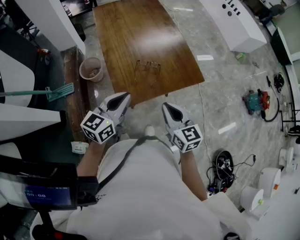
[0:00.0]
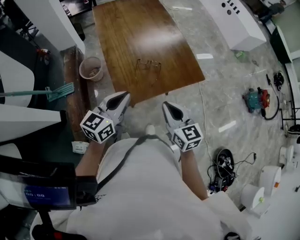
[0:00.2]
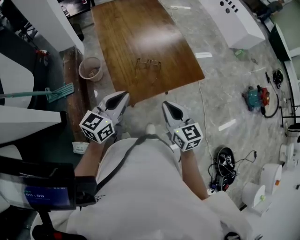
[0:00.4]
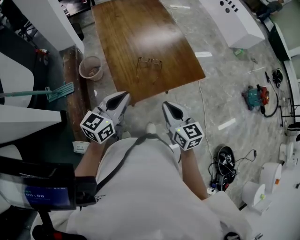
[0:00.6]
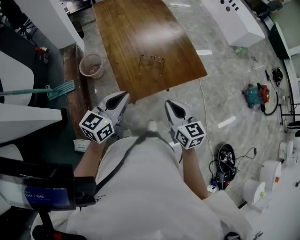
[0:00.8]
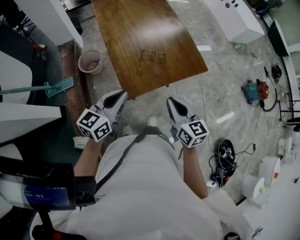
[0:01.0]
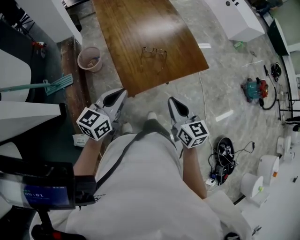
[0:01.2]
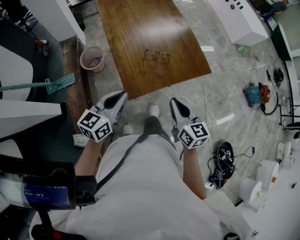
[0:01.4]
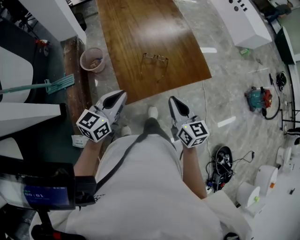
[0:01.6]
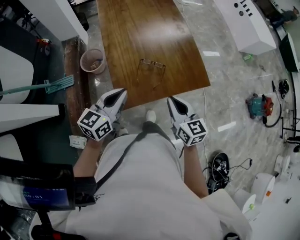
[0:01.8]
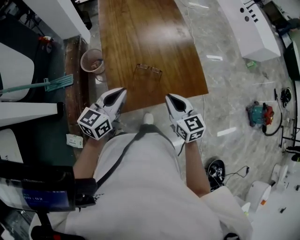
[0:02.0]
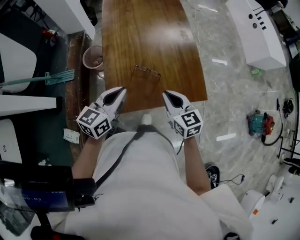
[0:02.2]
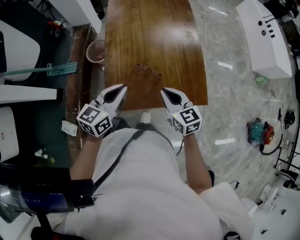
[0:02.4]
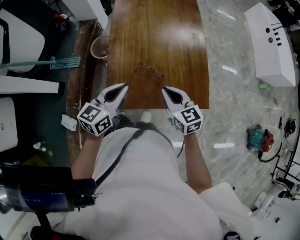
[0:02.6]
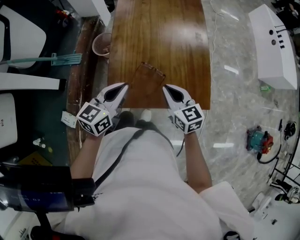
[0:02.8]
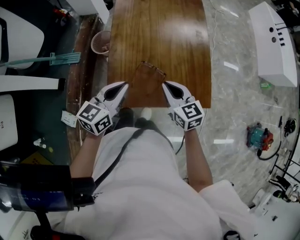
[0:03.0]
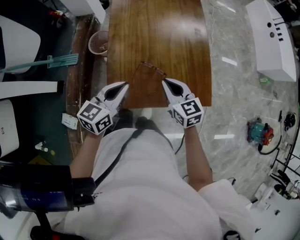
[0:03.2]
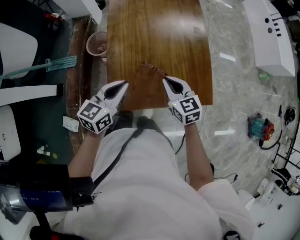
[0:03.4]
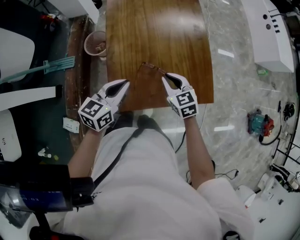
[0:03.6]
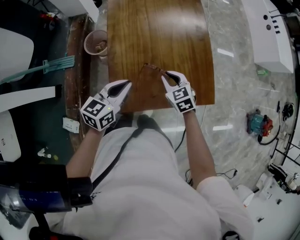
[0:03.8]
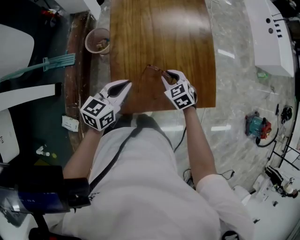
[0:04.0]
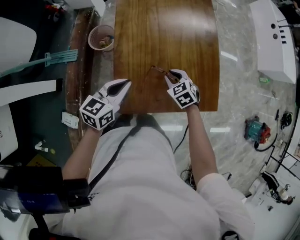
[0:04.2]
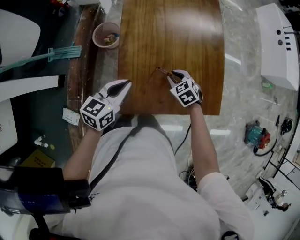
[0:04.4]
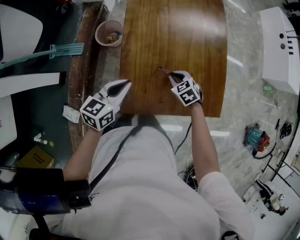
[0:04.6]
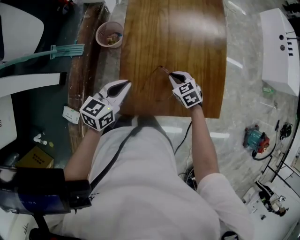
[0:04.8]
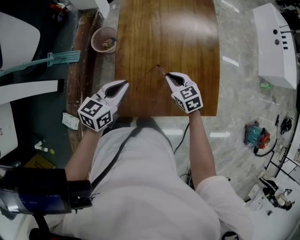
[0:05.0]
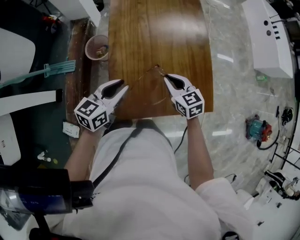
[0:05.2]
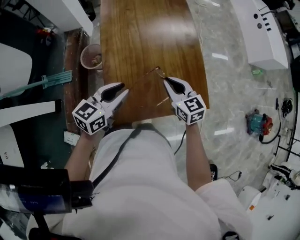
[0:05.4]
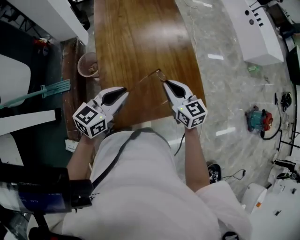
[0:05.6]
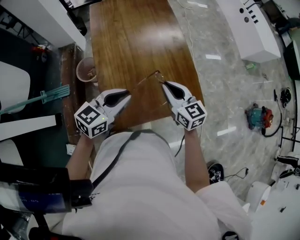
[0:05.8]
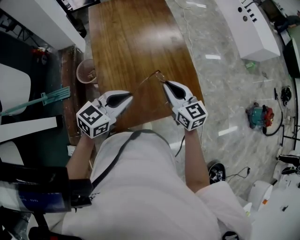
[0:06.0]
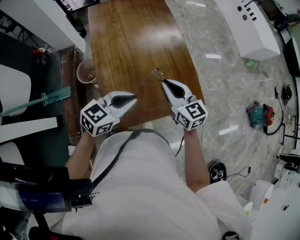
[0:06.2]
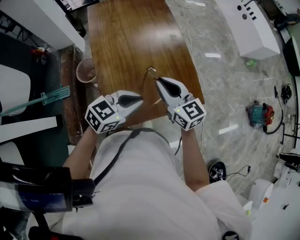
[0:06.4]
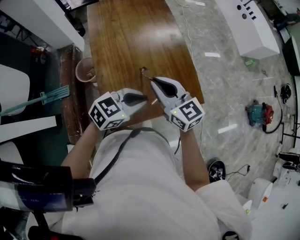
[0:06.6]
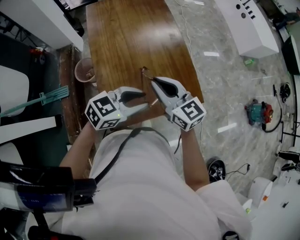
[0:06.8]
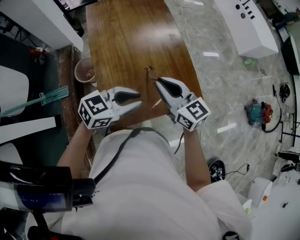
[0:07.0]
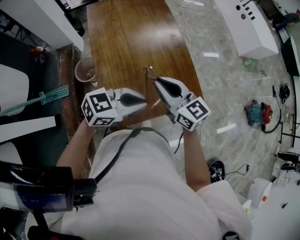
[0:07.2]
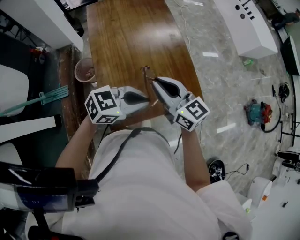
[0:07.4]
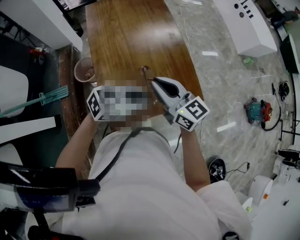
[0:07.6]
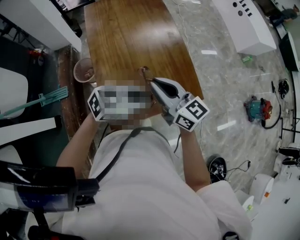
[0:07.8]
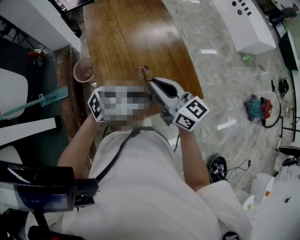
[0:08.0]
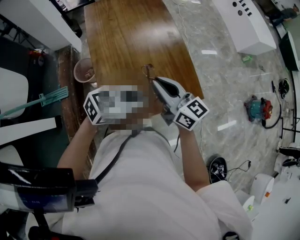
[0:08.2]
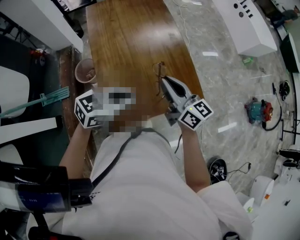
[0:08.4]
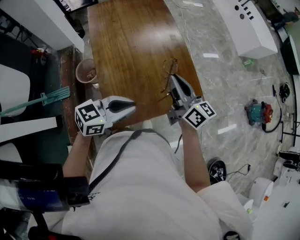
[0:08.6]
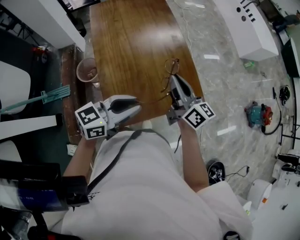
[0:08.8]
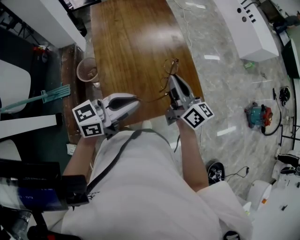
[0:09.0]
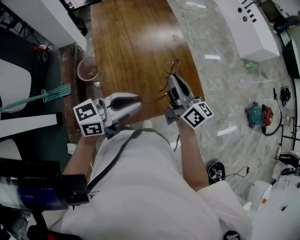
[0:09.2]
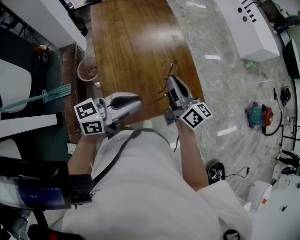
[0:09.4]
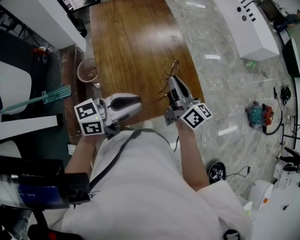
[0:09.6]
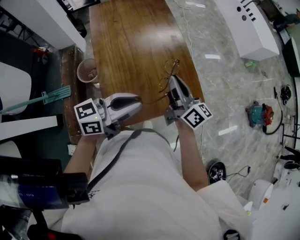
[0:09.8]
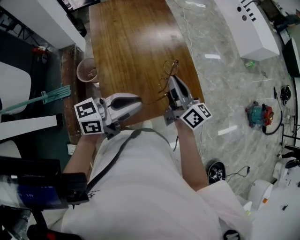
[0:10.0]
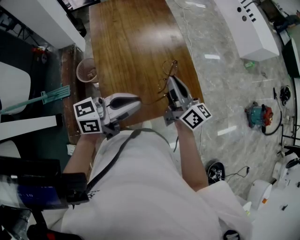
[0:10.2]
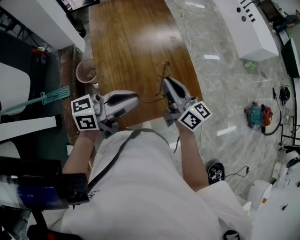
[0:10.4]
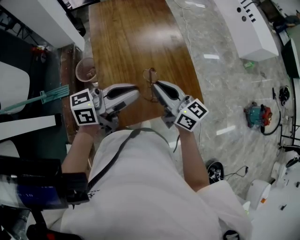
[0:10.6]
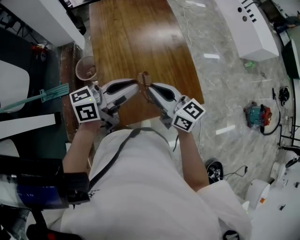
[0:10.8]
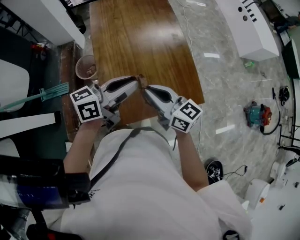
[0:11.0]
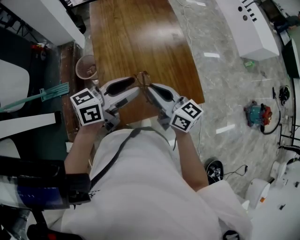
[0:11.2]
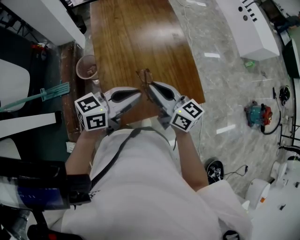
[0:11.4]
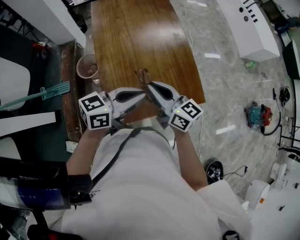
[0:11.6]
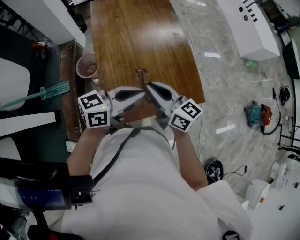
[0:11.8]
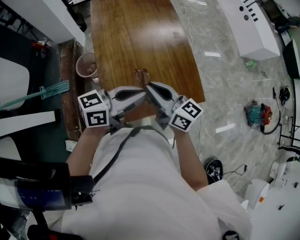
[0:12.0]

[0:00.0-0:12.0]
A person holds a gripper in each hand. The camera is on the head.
0:00.0 to 0:01.6: The left gripper travels to the left by roughly 5 cm.
0:01.6 to 0:03.0: The right gripper shifts some 20 cm forward, and rotates roughly 30 degrees, while the left gripper moves forward and to the right, about 15 cm.
0:03.0 to 0:04.4: The left gripper travels to the left, forward and downward by some 10 cm, while the right gripper travels downward and forward by approximately 20 cm, and points its fingers roughly 30 degrees further downward.
0:04.4 to 0:06.0: The right gripper is displaced upward by approximately 20 cm, and points its fingers roughly 40 degrees further upward. The left gripper goes approximately 15 cm to the right and upward, rotates about 30 degrees, and opens and closes again.
0:06.0 to 0:07.6: The right gripper shifts approximately 5 cm upward, while the left gripper shifts by some 5 cm, rotates some 30 degrees, and opens and closes again.
0:07.6 to 0:09.0: The right gripper ends up approximately 5 cm from where it was, and rotates about 30 degrees. The left gripper moves roughly 5 cm, and rotates roughly 30 degrees.
0:09.0 to 0:10.4: The grippers make only small movements.
0:10.4 to 0:12.0: The right gripper travels to the left by some 5 cm. The left gripper opens, then closes again.

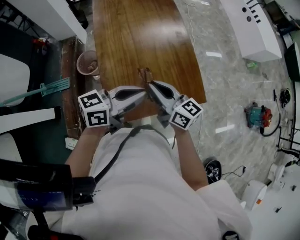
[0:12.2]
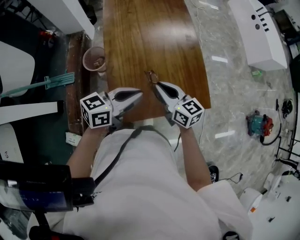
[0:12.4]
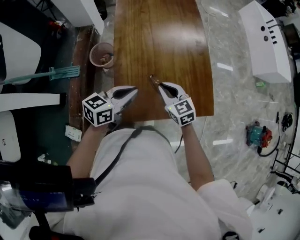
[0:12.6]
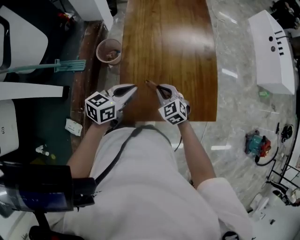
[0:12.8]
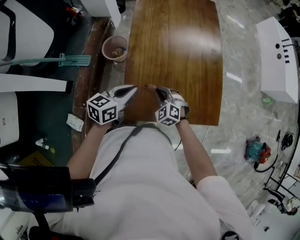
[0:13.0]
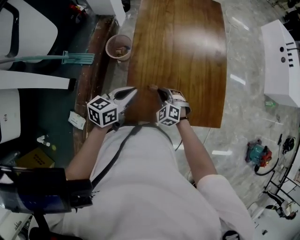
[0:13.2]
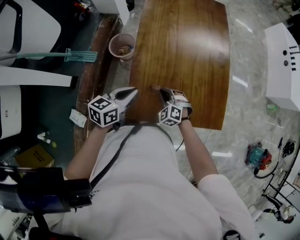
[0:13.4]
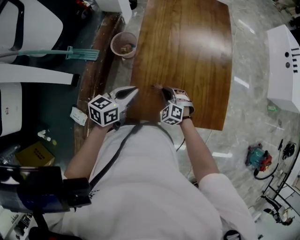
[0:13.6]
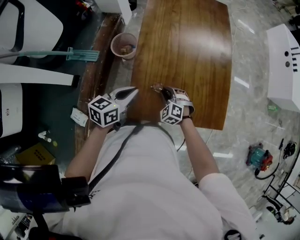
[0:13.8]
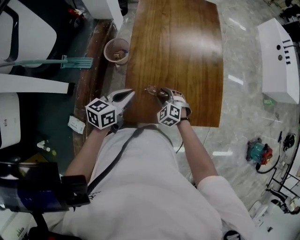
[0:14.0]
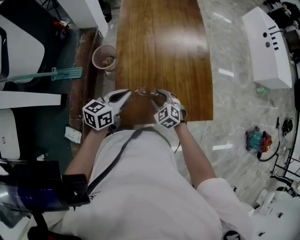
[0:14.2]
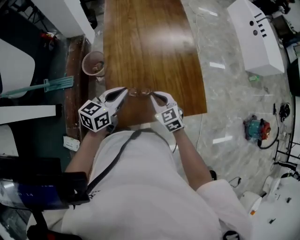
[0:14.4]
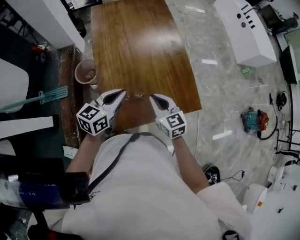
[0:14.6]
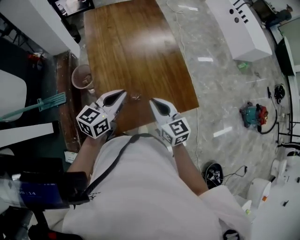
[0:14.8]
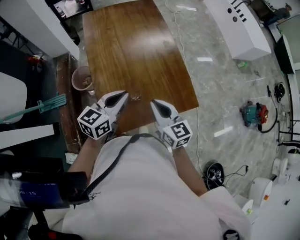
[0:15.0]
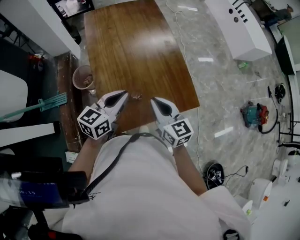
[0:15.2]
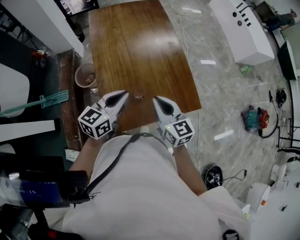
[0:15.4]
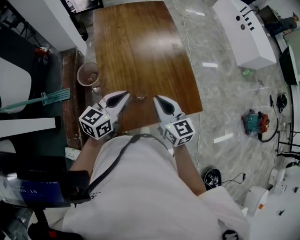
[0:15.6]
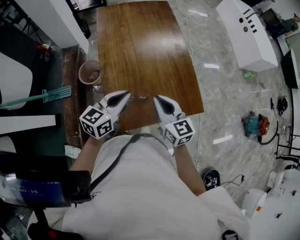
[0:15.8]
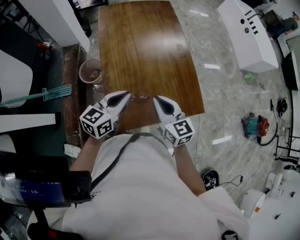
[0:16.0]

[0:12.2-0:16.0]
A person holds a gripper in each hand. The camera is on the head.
0:12.2 to 0:13.4: The left gripper goes approximately 20 cm to the left and downward, and rotates some 40 degrees. The right gripper moves downward, approximately 25 cm, and rotates around the line of its fingers by approximately 70 degrees, counterclockwise from behind.
0:13.4 to 0:14.8: The right gripper is displaced upward and to the right by roughly 25 cm, twists some 60 degrees clockwise, seen from behind, and opens, then closes again. The left gripper heads to the right and upward, covering some 15 cm, and rotates about 20 degrees.
0:14.8 to 0:16.0: There are only small adjustments of the grippers.

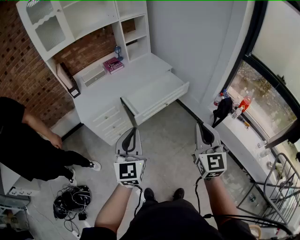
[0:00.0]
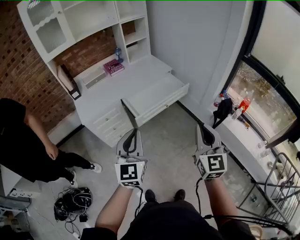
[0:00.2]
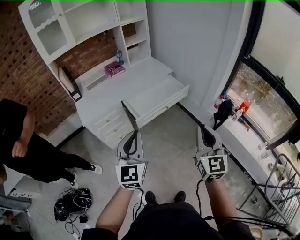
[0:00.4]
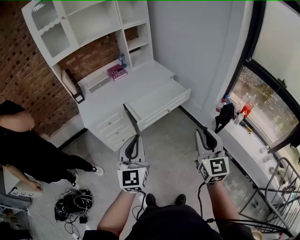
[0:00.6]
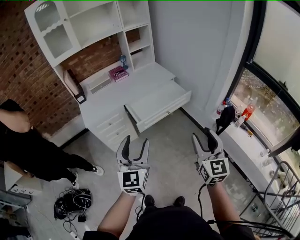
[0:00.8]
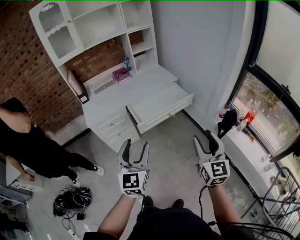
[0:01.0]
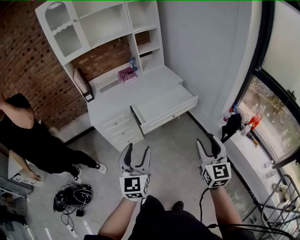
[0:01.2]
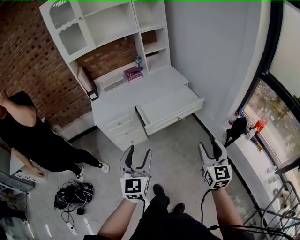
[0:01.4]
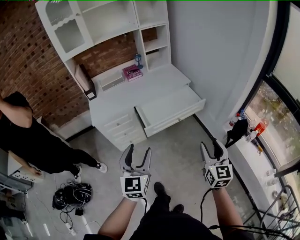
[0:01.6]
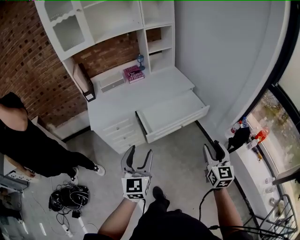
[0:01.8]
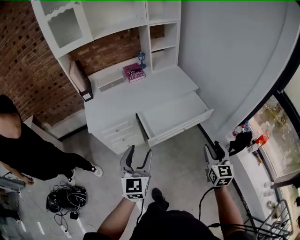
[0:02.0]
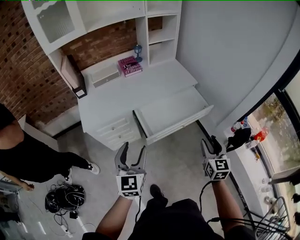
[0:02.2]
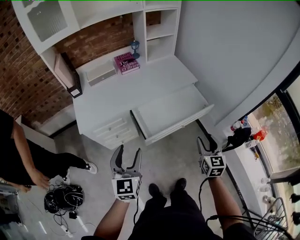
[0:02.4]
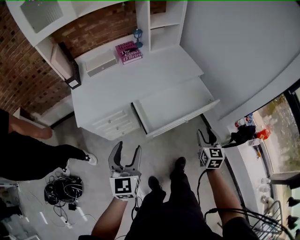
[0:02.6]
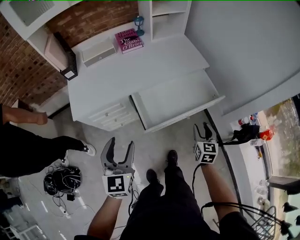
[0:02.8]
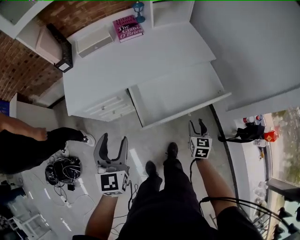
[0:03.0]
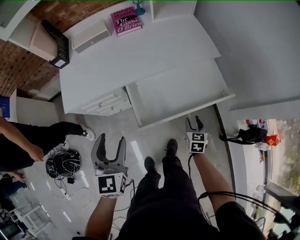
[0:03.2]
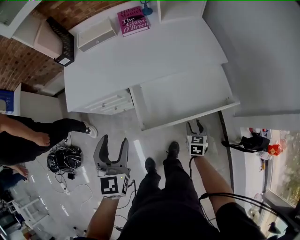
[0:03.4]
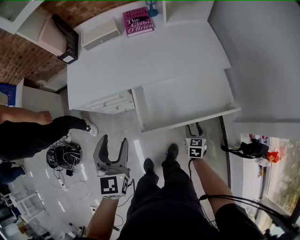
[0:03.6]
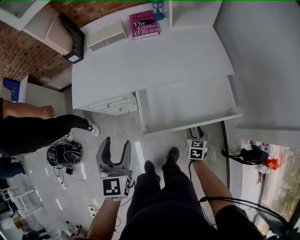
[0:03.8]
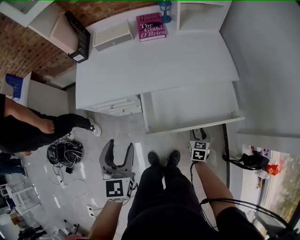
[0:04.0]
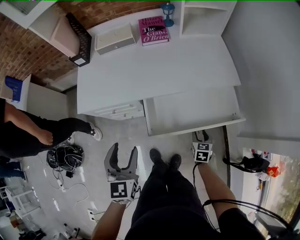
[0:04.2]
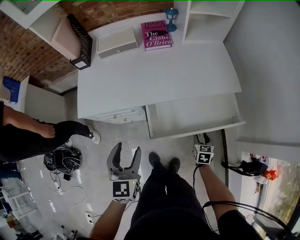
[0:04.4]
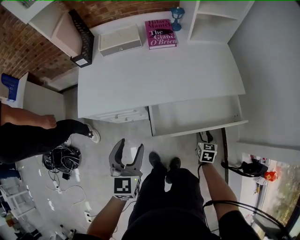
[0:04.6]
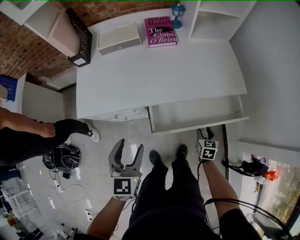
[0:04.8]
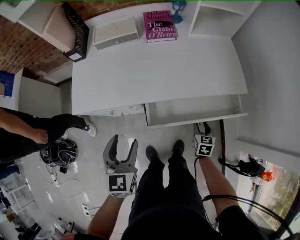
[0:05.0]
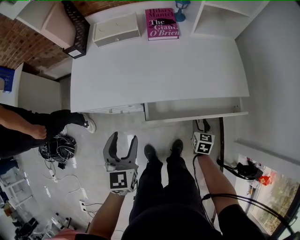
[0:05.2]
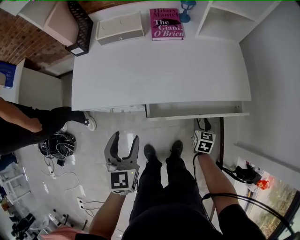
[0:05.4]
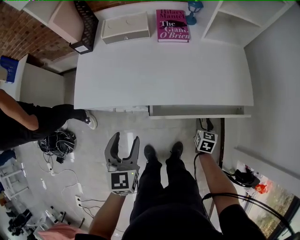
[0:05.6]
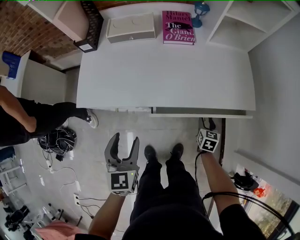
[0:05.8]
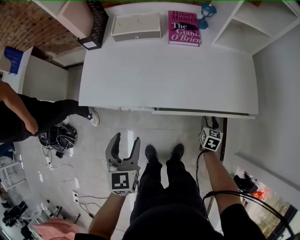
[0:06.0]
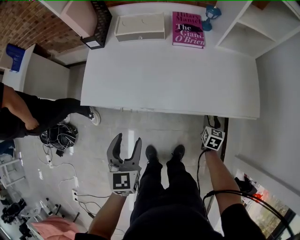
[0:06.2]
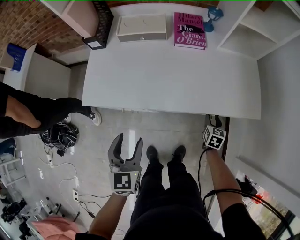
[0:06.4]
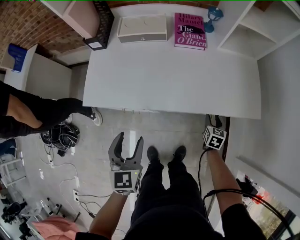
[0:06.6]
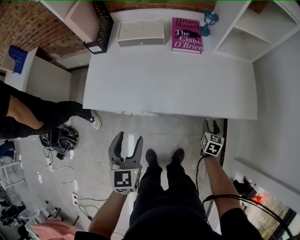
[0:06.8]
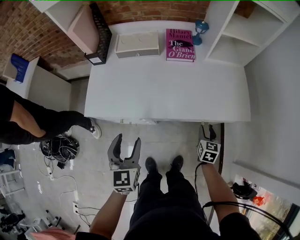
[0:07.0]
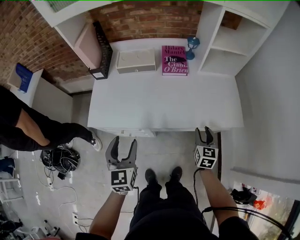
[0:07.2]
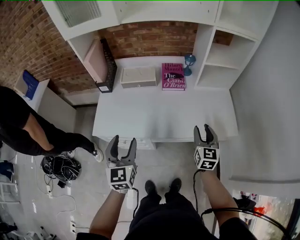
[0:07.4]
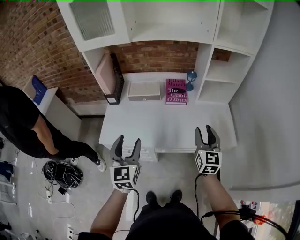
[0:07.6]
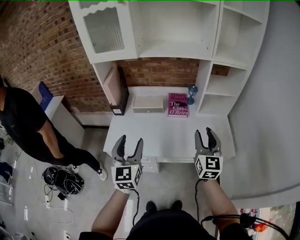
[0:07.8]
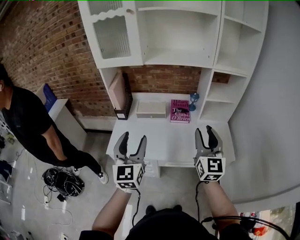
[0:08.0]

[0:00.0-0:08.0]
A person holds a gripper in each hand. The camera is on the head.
0:00.0 to 0:01.6: The left gripper opens. The right gripper is displaced downward, to the right and forward by about 15 cm, and opens its fingers.
0:01.6 to 0:03.2: The right gripper goes about 60 cm forward and downward, and tilts its fingers about 40 degrees downward. The left gripper is displaced forward and downward by roughly 35 cm, and turns by about 20 degrees.
0:03.2 to 0:04.8: The right gripper is displaced forward by roughly 10 cm. Meanwhile the left gripper is displaced forward and downward by some 10 cm.
0:04.8 to 0:06.4: The right gripper shifts about 15 cm forward. Meanwhile the left gripper moves about 5 cm.
0:06.4 to 0:08.0: The right gripper is displaced upward by roughly 50 cm, and angles its fingers upward, by about 50 degrees. Meanwhile the left gripper heads upward, covering about 30 cm, and points its fingers approximately 30 degrees further upward.
